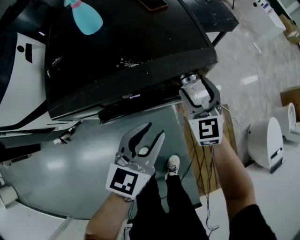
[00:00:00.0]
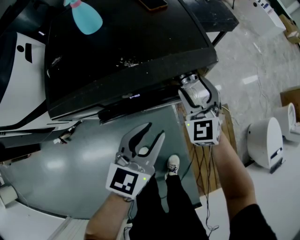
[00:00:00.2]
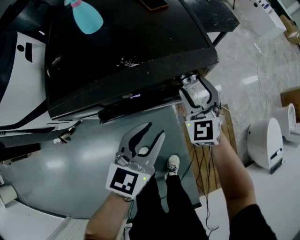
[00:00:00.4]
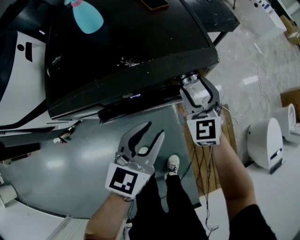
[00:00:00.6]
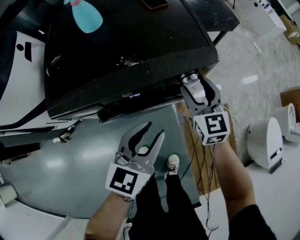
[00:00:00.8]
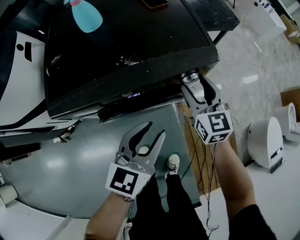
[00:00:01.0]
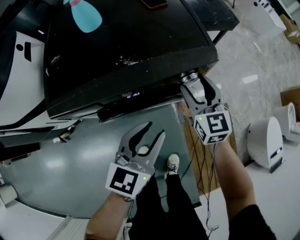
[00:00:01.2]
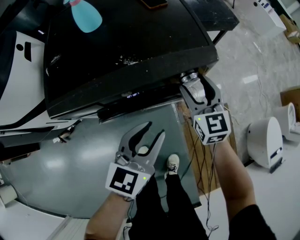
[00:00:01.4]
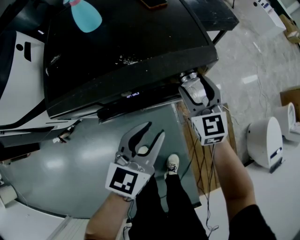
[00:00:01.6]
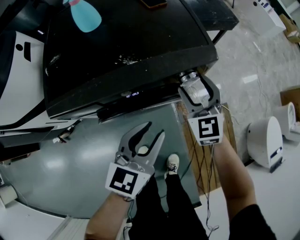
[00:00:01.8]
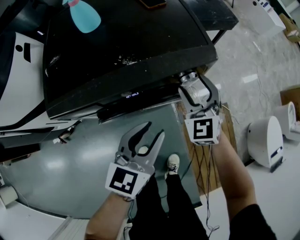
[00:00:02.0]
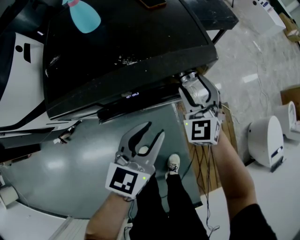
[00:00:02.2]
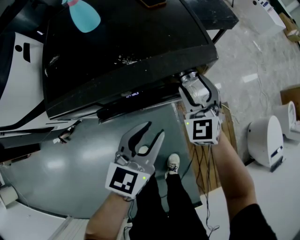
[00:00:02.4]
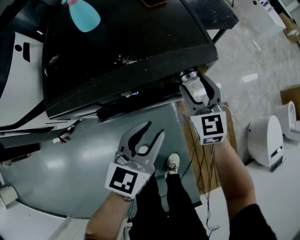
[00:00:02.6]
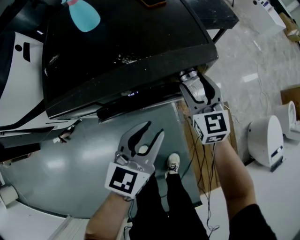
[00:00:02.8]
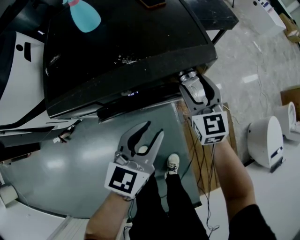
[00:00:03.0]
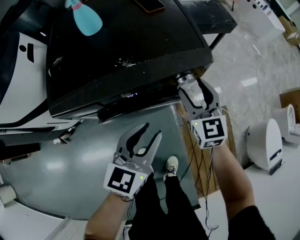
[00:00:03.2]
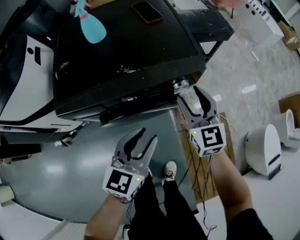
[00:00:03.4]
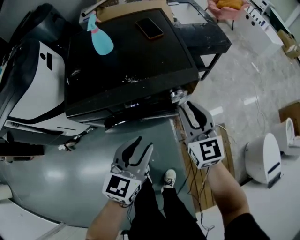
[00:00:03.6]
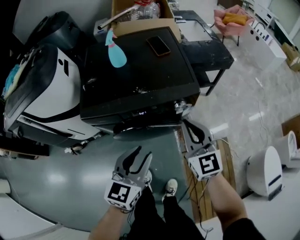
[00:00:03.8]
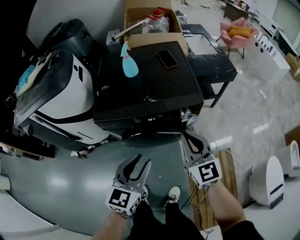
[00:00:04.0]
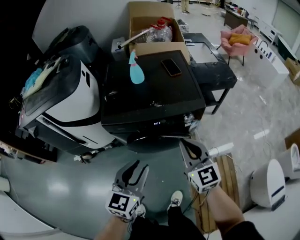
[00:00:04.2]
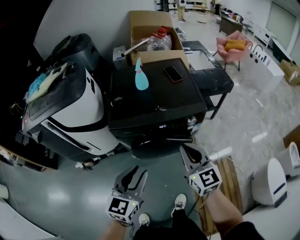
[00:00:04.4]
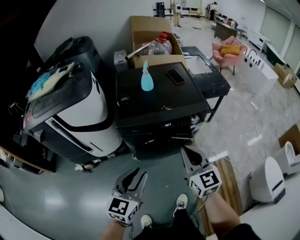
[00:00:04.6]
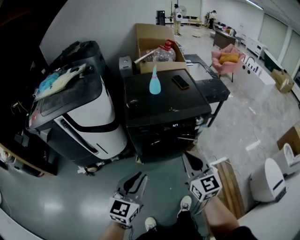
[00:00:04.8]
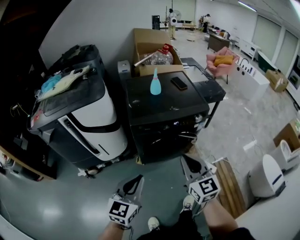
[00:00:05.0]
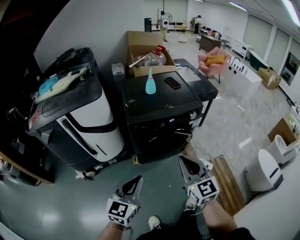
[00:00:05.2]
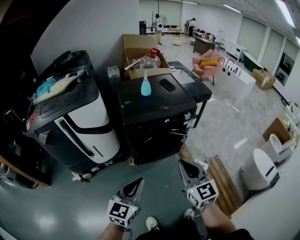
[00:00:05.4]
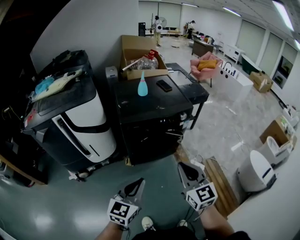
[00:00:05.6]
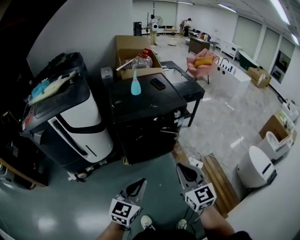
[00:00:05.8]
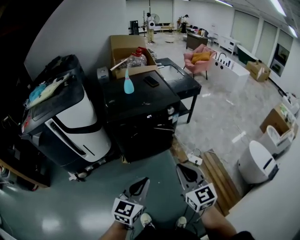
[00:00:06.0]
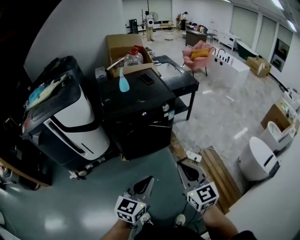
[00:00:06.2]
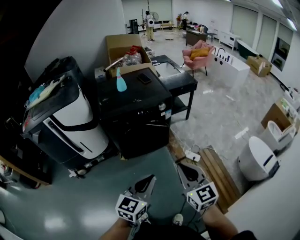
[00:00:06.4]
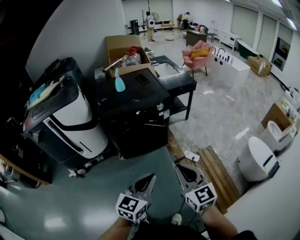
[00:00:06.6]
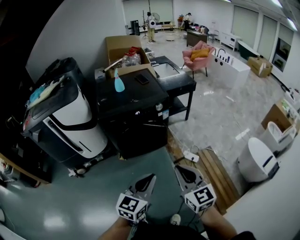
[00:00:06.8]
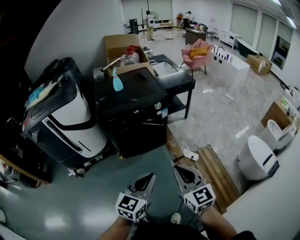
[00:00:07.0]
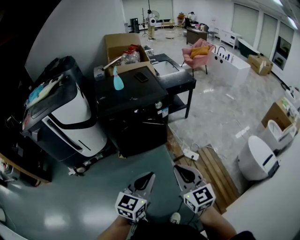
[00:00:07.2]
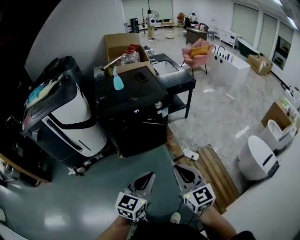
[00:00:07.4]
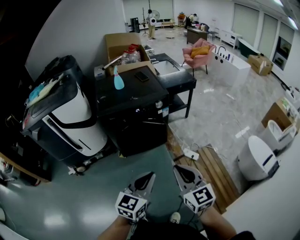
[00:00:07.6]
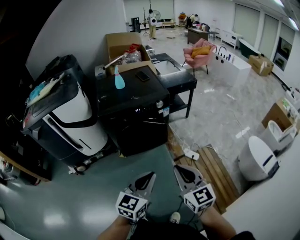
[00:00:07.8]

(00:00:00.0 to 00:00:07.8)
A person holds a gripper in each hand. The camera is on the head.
00:00:00.0 - 00:00:01.6: The grippers move only a little.
00:00:03.2 - 00:00:04.6: The grippers both shift backward, upward and to the left by about 35 cm. The right gripper closes.
00:00:04.6 - 00:00:06.2: The left gripper is displaced backward and to the right by roughly 25 cm, and closes its fingers. Meanwhile the right gripper travels backward by roughly 30 cm.
00:00:06.2 - 00:00:07.8: Both grippers travel together to the right, roughly 5 cm.

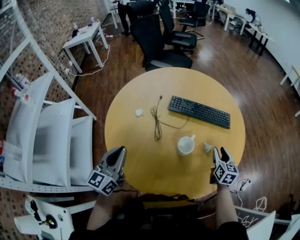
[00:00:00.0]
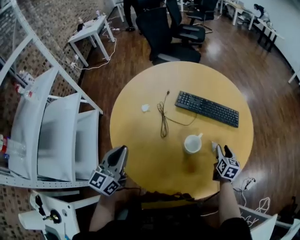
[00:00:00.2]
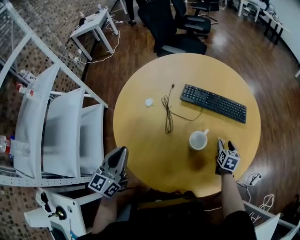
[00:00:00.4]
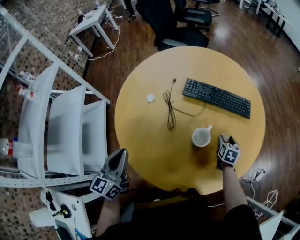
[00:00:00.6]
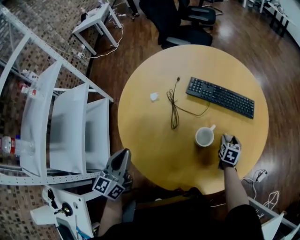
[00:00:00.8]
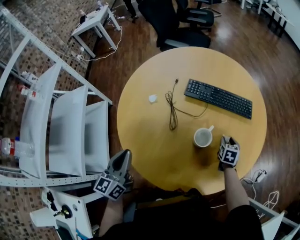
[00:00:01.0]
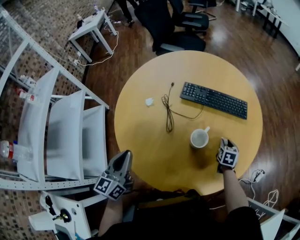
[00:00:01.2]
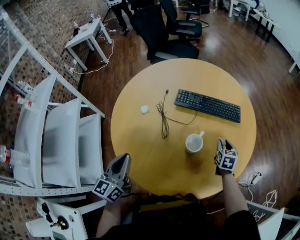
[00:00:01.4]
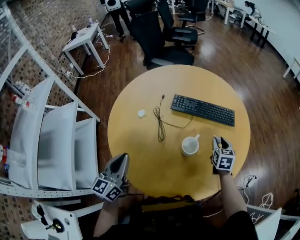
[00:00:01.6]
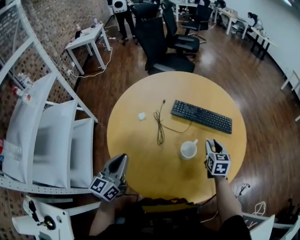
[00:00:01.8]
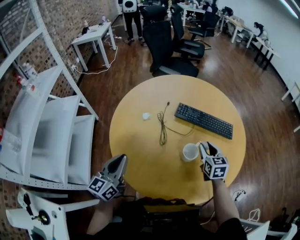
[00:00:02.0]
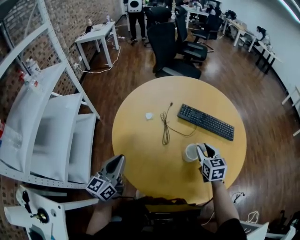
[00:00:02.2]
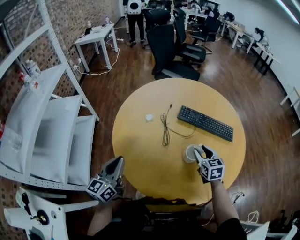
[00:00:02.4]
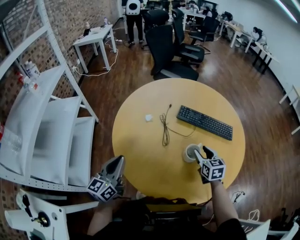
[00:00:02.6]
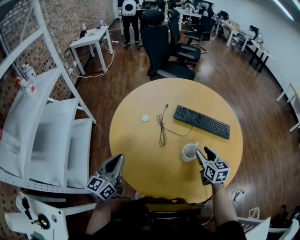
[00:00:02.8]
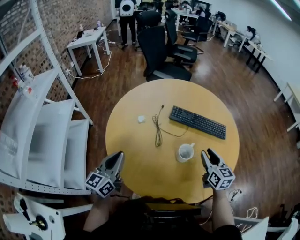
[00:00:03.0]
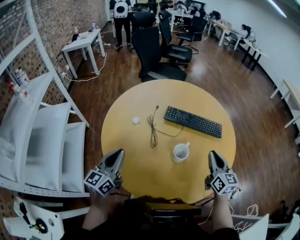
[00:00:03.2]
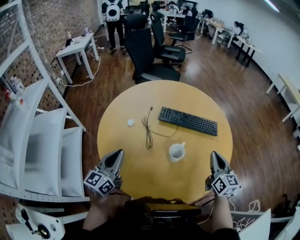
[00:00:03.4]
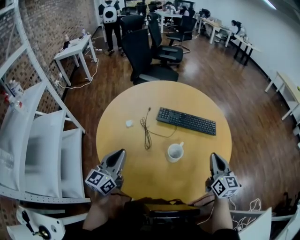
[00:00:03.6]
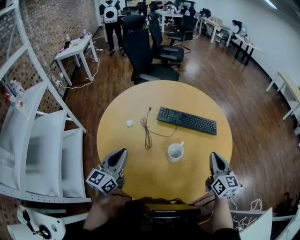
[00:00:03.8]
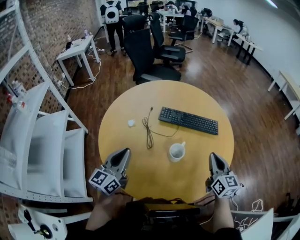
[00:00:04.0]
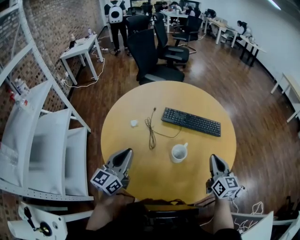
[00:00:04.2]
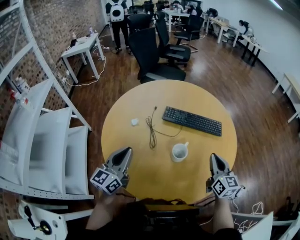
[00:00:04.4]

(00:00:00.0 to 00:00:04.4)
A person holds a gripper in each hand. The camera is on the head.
00:00:00.0 - 00:00:01.4: The right gripper shifts about 10 cm downward and forward, and opens, then closes again.
00:00:01.4 - 00:00:03.0: The right gripper goes roughly 20 cm upward and to the left, and changes its angle by approximately 30 degrees.
00:00:03.0 - 00:00:04.4: Both grippers travel together to the right, some 5 cm. The right gripper closes.

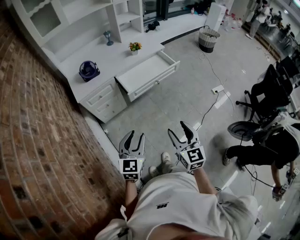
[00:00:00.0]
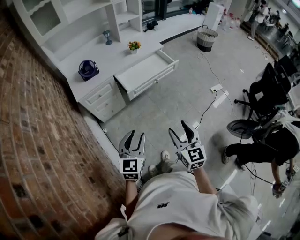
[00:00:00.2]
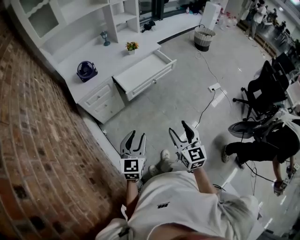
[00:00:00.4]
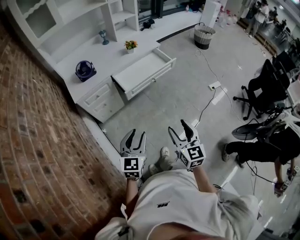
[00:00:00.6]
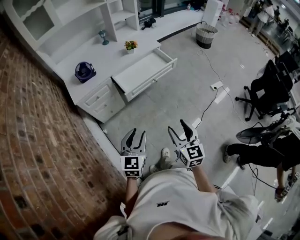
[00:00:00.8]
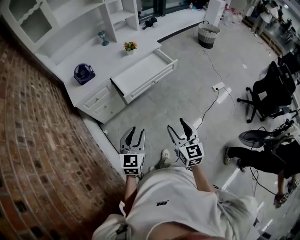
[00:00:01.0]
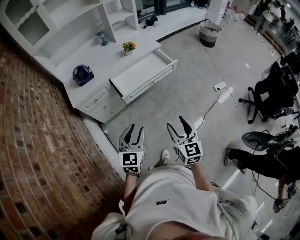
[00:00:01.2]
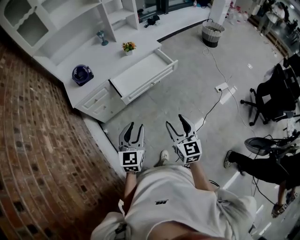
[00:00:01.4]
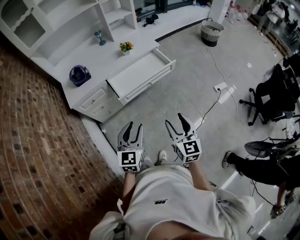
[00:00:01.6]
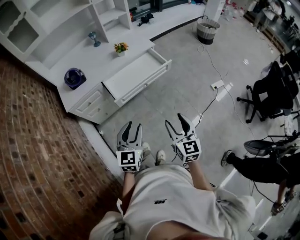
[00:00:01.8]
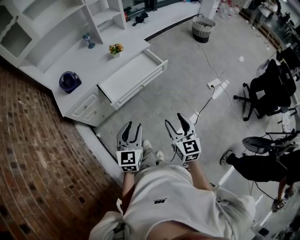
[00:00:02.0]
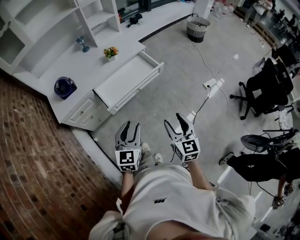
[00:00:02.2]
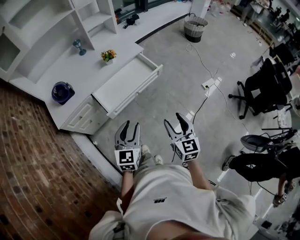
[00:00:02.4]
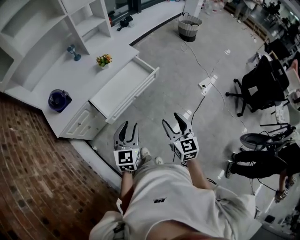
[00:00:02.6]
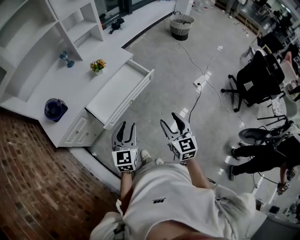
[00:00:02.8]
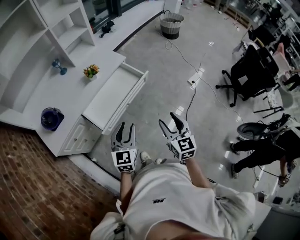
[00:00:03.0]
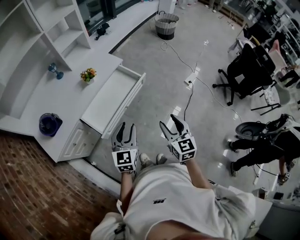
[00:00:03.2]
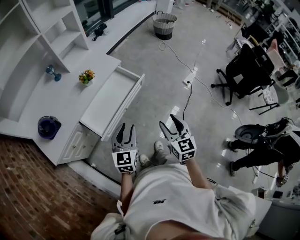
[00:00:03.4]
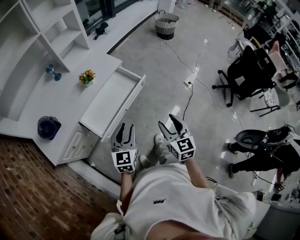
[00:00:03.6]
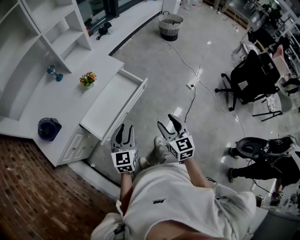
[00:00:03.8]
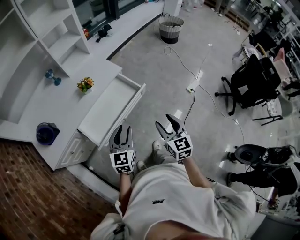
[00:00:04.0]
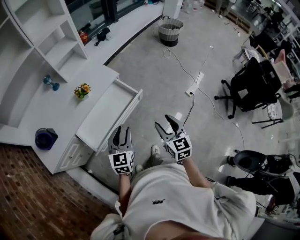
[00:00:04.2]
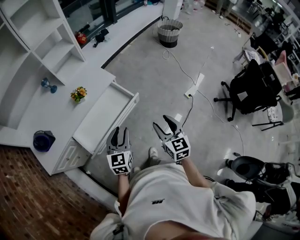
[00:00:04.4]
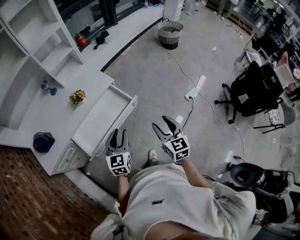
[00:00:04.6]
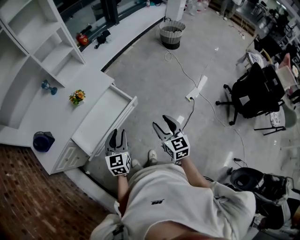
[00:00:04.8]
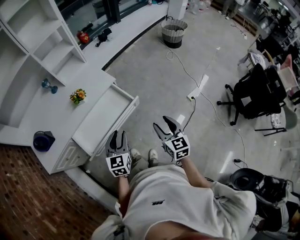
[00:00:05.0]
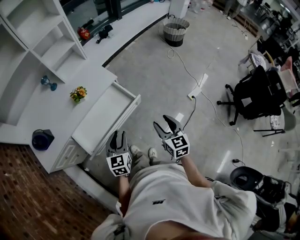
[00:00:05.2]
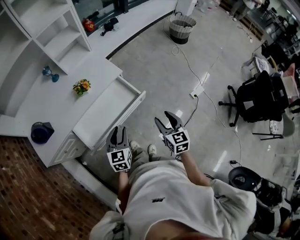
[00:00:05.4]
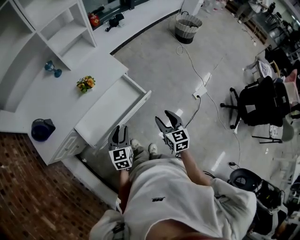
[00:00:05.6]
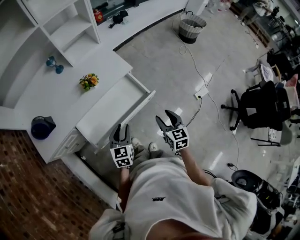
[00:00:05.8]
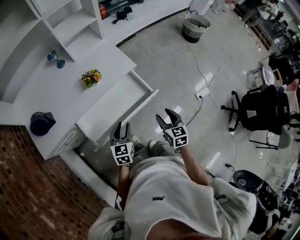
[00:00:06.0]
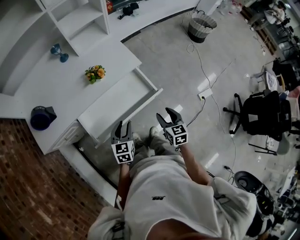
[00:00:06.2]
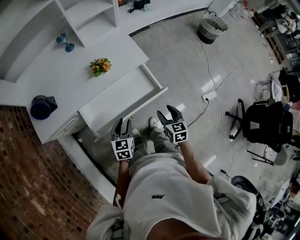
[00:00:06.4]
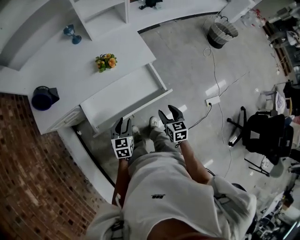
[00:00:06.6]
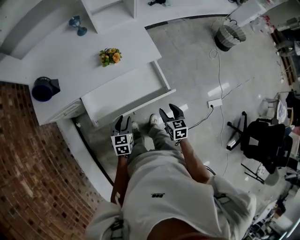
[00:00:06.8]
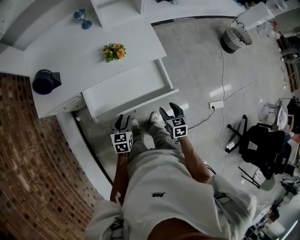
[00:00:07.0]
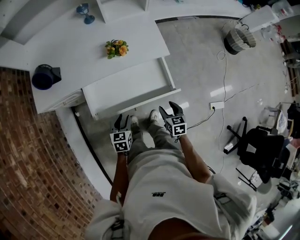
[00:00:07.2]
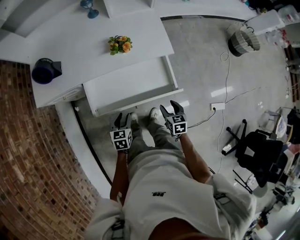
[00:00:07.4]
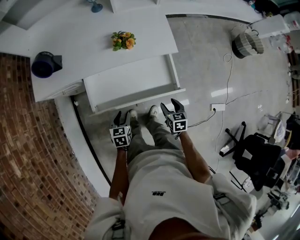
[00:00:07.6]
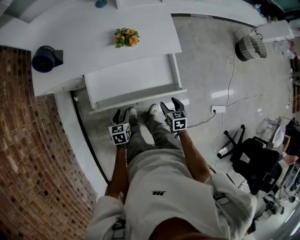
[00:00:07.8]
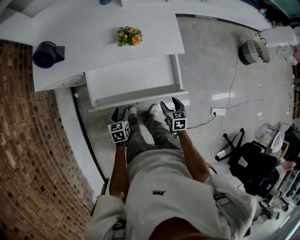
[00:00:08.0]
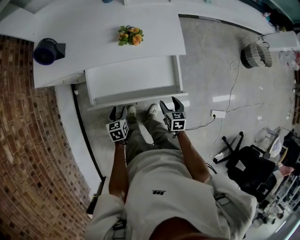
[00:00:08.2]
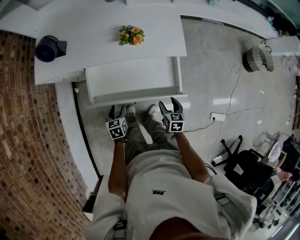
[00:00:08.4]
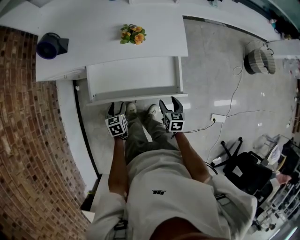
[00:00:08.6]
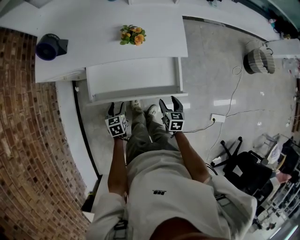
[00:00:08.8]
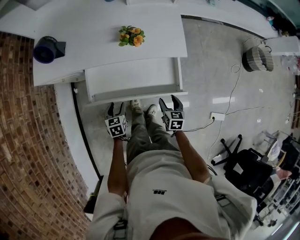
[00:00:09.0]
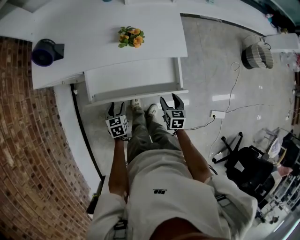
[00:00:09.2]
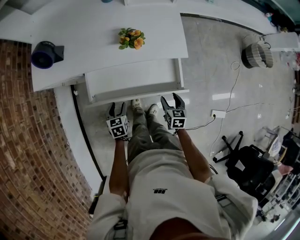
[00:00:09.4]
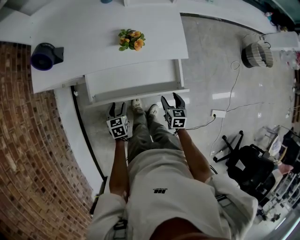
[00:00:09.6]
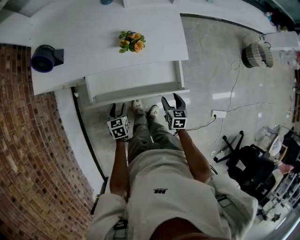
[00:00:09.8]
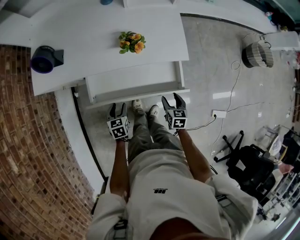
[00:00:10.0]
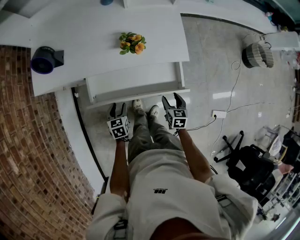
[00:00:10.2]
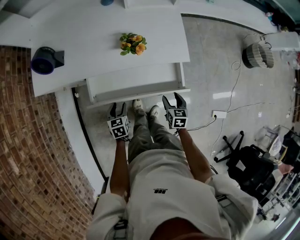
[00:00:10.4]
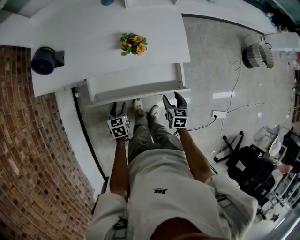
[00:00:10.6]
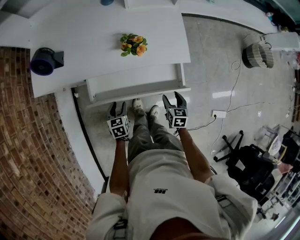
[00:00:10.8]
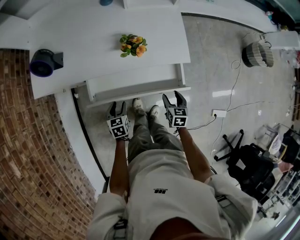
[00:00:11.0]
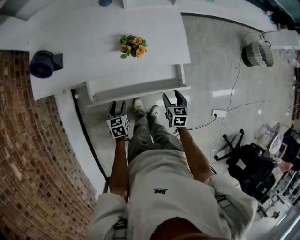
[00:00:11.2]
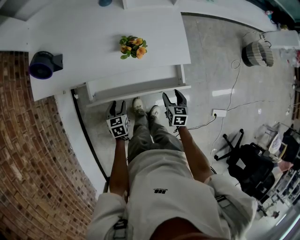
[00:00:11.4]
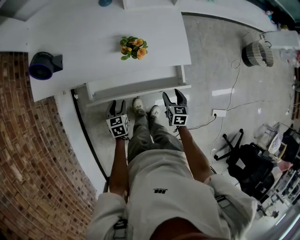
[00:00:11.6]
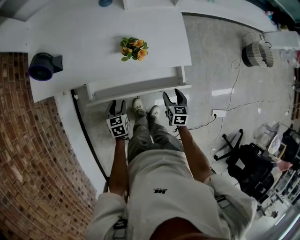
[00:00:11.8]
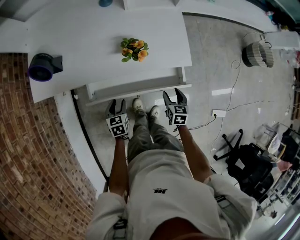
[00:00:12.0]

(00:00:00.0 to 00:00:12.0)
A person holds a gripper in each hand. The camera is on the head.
00:00:00.0 - 00:00:01.6: Both grippers move forward and to the right, roughly 15 cm.
00:00:01.6 - 00:00:03.0: Both grippers travel together forward, about 20 cm.
00:00:03.0 - 00:00:04.4: Both grippers travel together forward and to the right, roughly 20 cm.
00:00:04.4 - 00:00:06.0: The left gripper is displaced downward, to the left and forward by about 15 cm; the right gripper goes roughly 20 cm forward, downward and to the left.
00:00:06.0 - 00:00:07.6: The right gripper moves downward and forward, approximately 20 cm, and rotates roughly 30 degrees. Meanwhile the left gripper is displaced downward by approximately 15 cm, and changes its angle by approximately 30 degrees.
00:00:07.6 - 00:00:09.0: The left gripper moves about 5 cm, while the right gripper changes place by some 5 cm.
00:00:09.0 - 00:00:10.4: The right gripper moves forward, some 5 cm.
00:00:10.4 - 00:00:12.0: The two grippers go about 5 cm forward.
